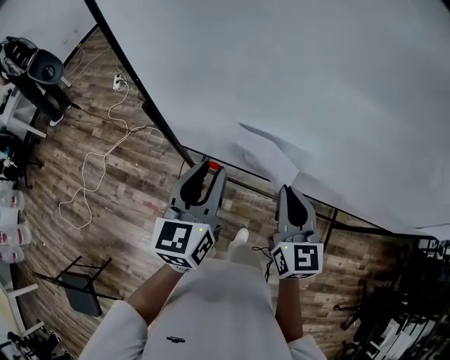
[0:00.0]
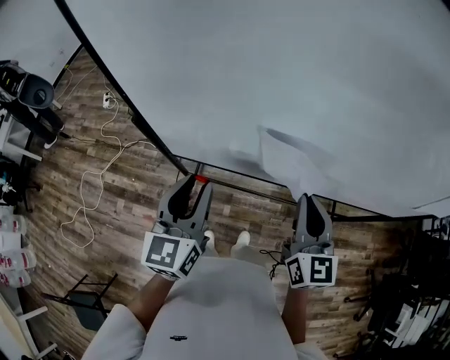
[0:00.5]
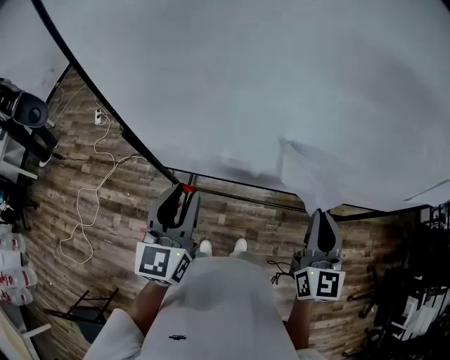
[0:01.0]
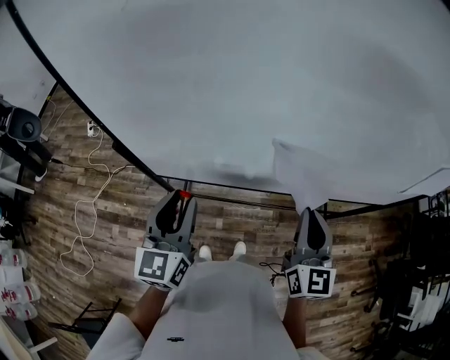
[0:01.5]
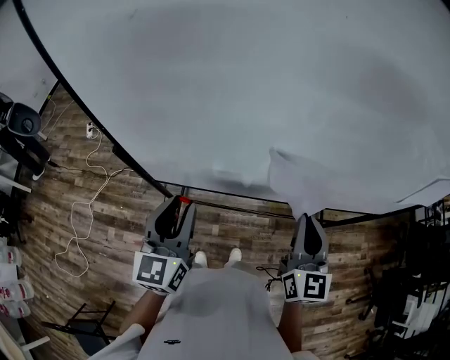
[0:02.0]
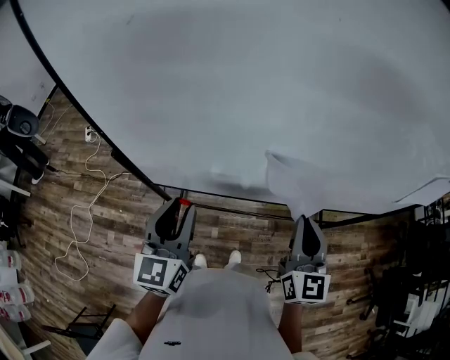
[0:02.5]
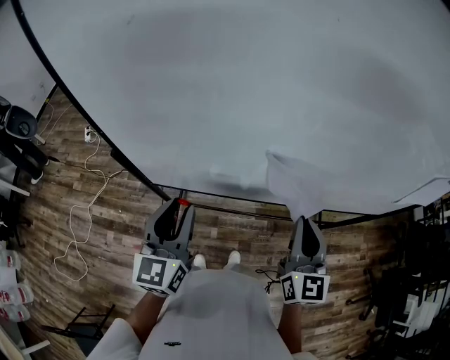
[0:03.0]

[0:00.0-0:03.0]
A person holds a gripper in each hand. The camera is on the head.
0:00.0 to 0:01.5: The right gripper shifts roughly 15 cm to the right and backward, and swivels some 20 degrees.
0:01.5 to 0:03.0: Both grippers stay about where they are.

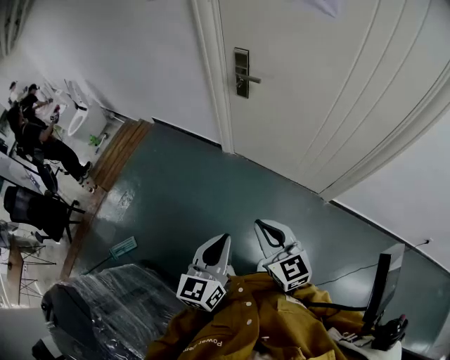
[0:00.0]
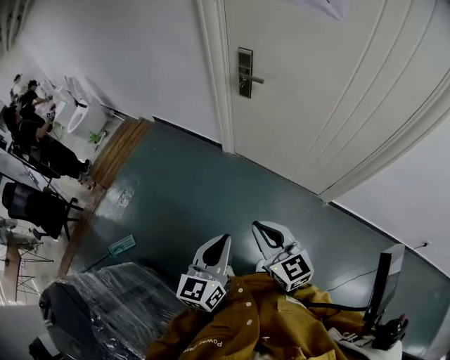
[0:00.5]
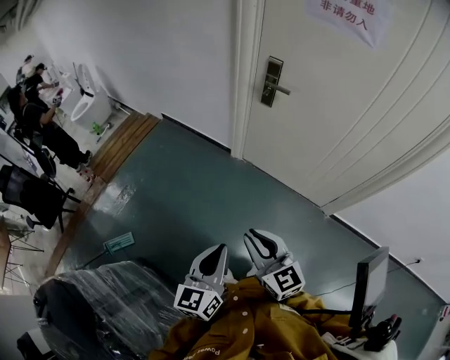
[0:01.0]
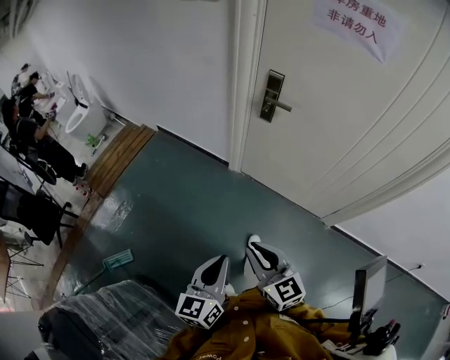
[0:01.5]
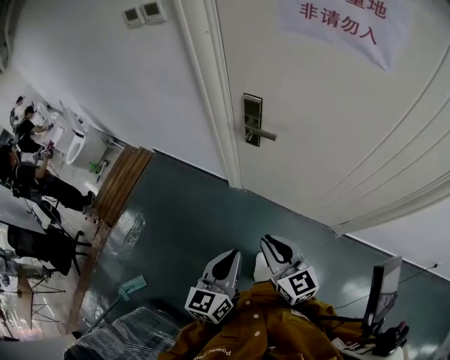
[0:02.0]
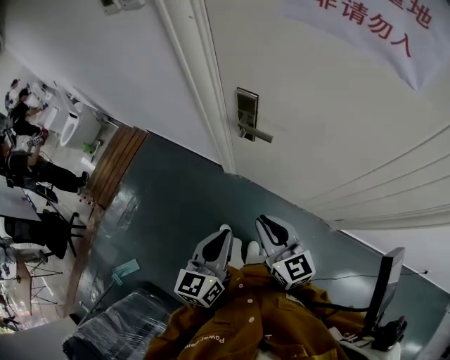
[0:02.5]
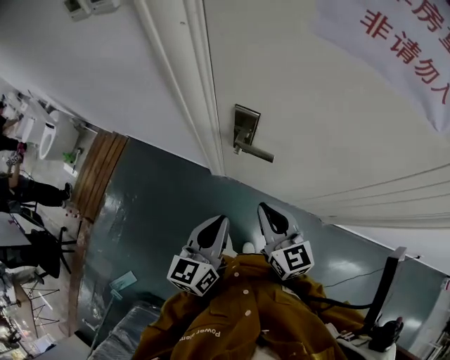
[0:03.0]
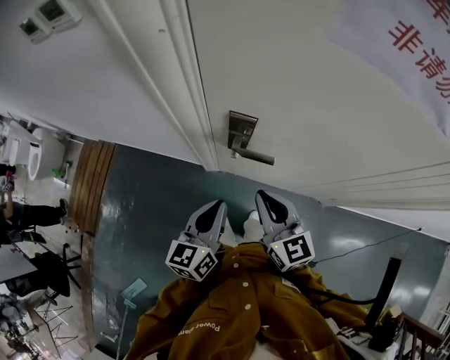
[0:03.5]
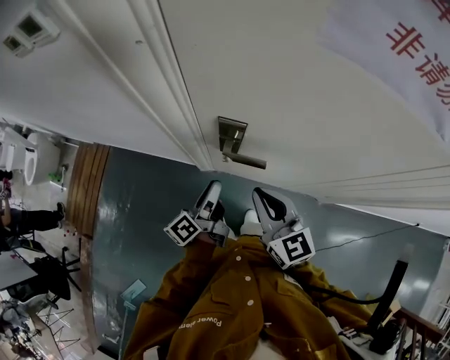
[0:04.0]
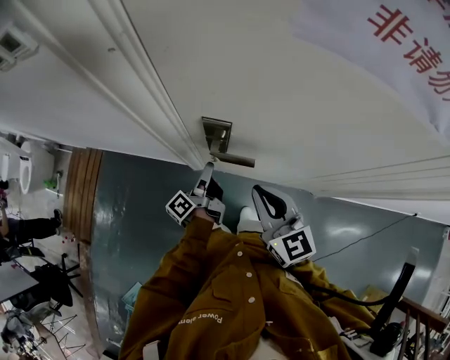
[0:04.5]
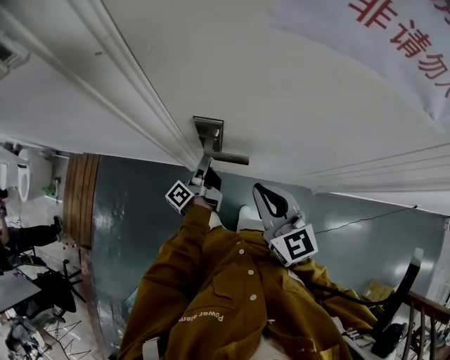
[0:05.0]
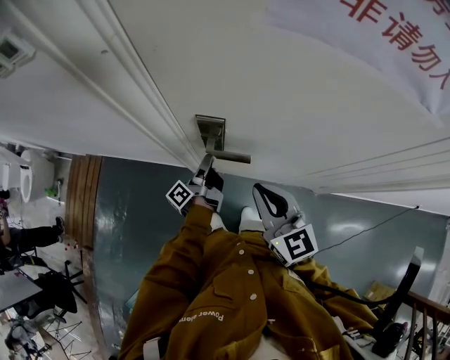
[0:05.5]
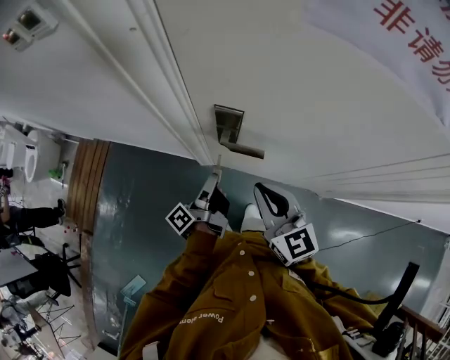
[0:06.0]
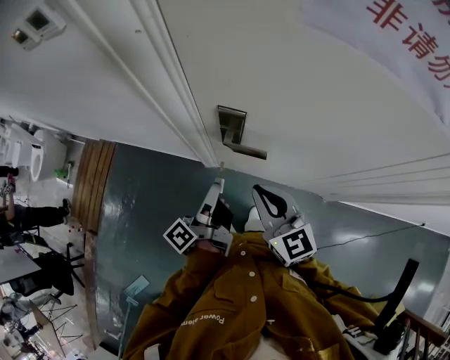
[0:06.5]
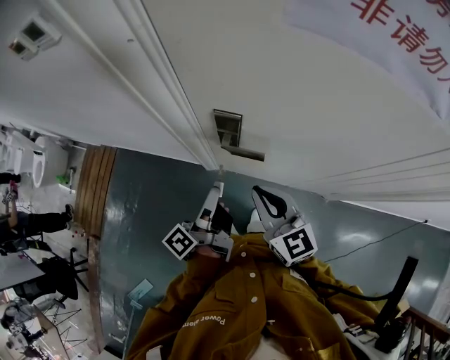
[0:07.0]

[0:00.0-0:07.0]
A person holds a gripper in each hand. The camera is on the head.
0:00.0 to 0:02.0: The two grippers go some 30 cm forward.
0:02.0 to 0:03.5: Both grippers move forward, about 30 cm.
0:03.5 to 0:05.0: The left gripper heads forward and downward, covering roughly 20 cm, twists about 60 degrees counterclockwise, seen from behind, and opens its fingers, while the right gripper heads to the right, covering roughly 5 cm.
0:05.0 to 0:07.0: The left gripper travels upward and backward by roughly 20 cm.

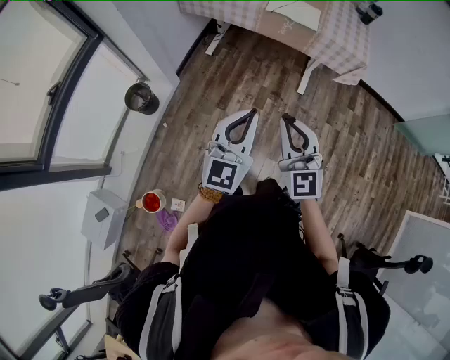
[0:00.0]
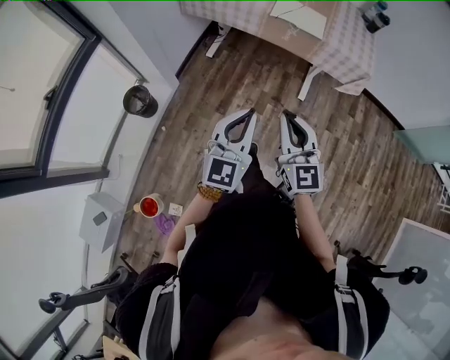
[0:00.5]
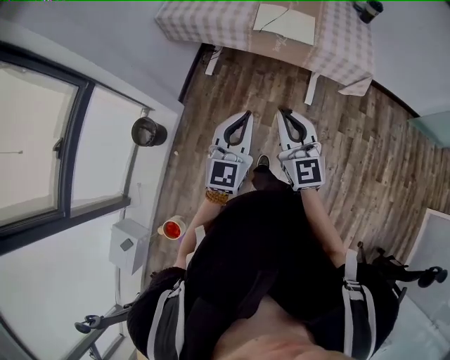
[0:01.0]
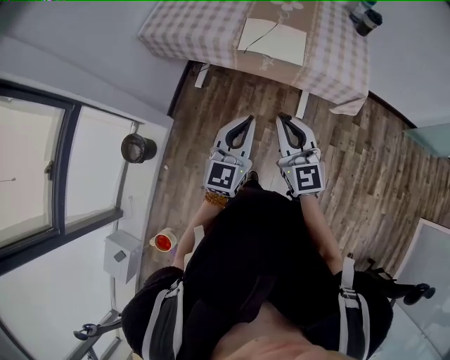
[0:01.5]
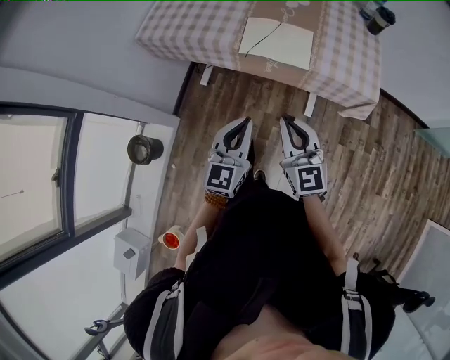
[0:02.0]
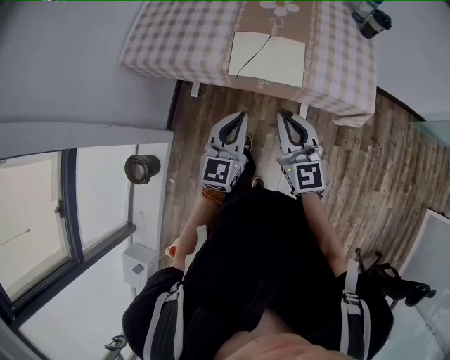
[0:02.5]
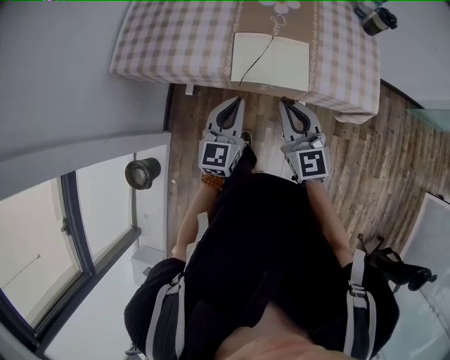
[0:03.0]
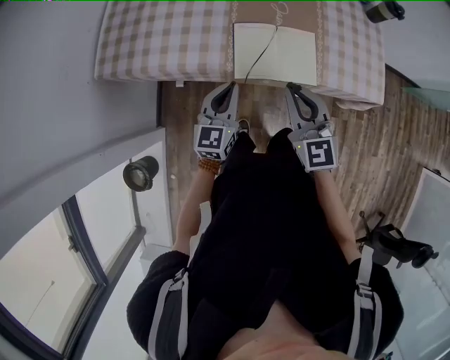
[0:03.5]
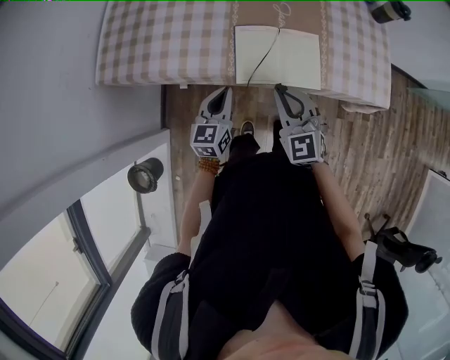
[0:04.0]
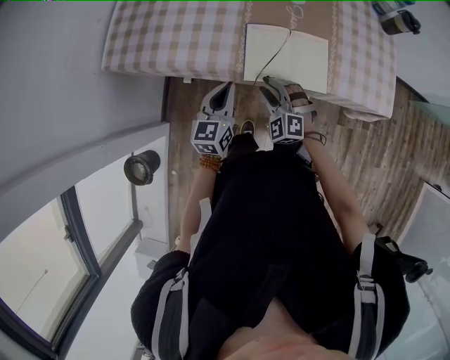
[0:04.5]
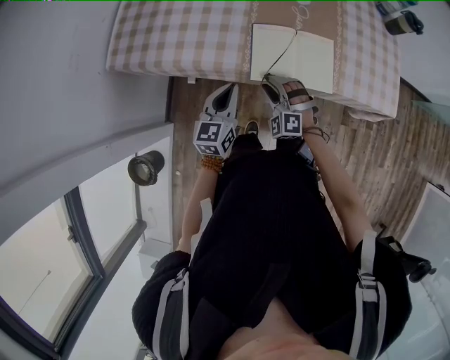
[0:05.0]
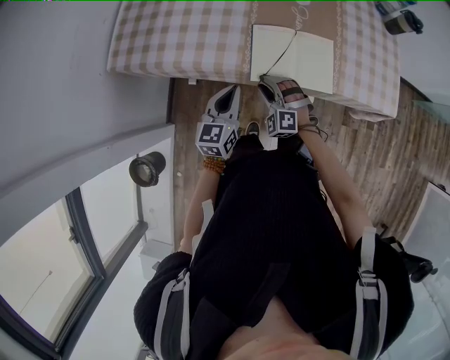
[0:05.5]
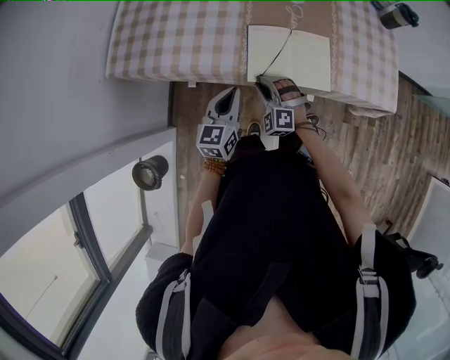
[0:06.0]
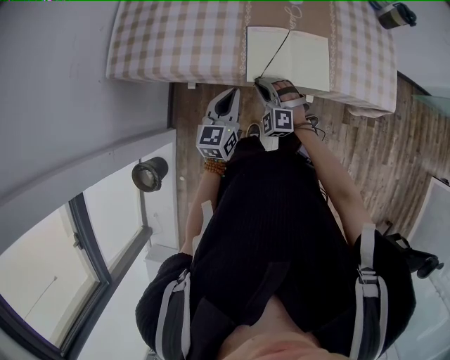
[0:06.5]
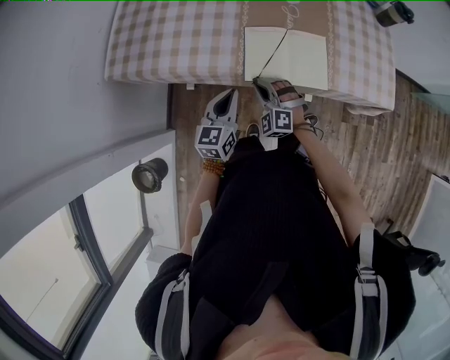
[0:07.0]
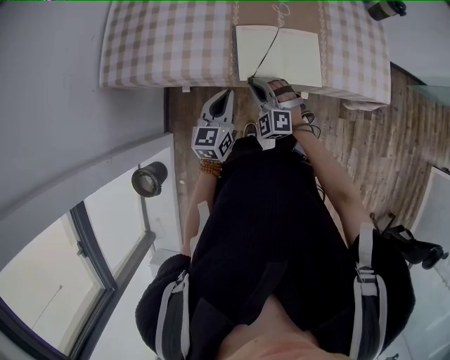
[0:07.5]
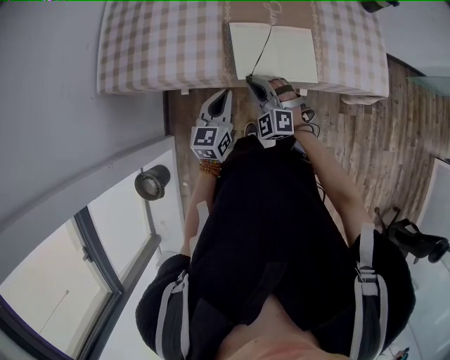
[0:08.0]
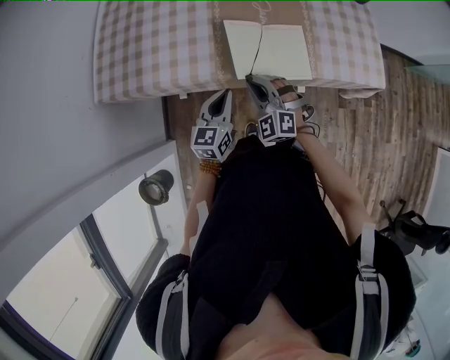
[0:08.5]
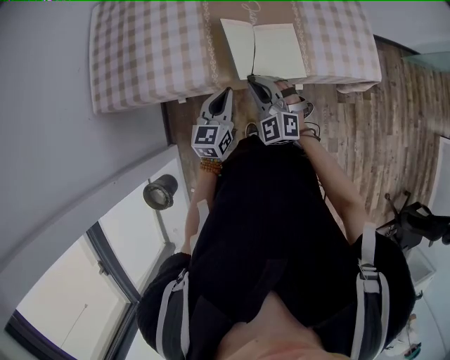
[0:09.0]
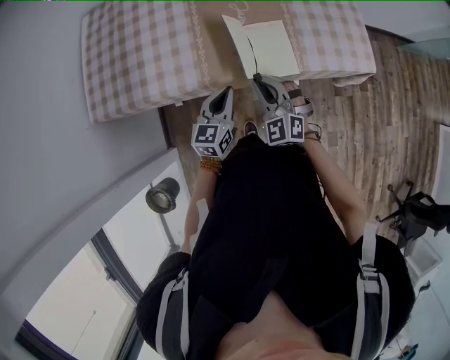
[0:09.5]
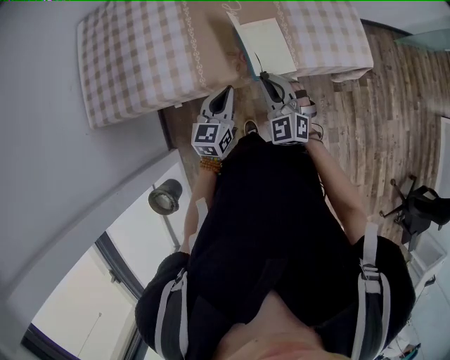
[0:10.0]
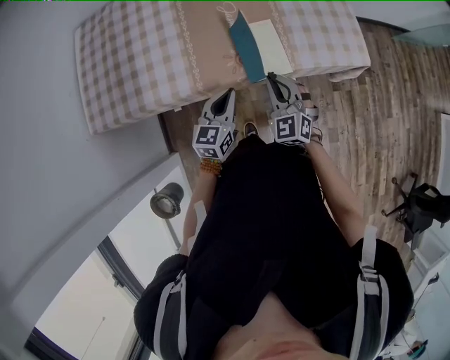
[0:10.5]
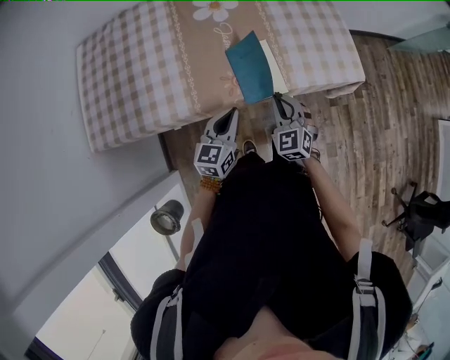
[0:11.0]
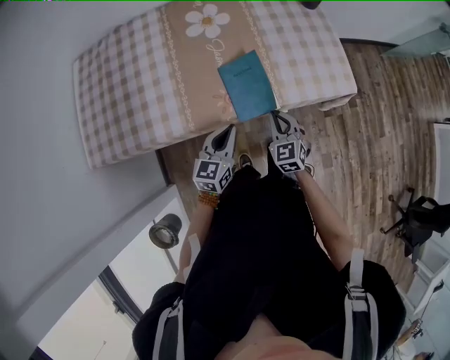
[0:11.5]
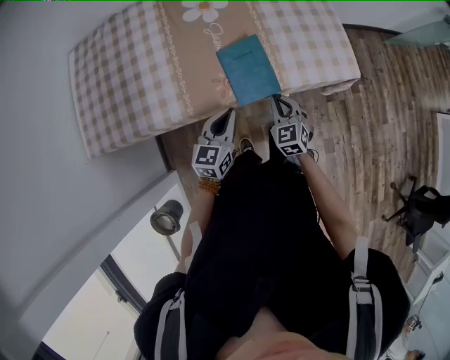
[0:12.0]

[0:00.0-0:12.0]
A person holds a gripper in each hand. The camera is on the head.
0:00.0 to 0:02.0: The pair of grippers is taken forward, roughly 40 cm.
0:02.0 to 0:04.0: The left gripper goes about 35 cm forward and downward. The right gripper heads forward, covering roughly 30 cm, and changes its angle by some 20 degrees.
0:04.0 to 0:06.0: The right gripper goes about 20 cm downward and to the left, and rotates approximately 40 degrees.
0:06.0 to 0:08.0: The right gripper moves upward, approximately 5 cm.
0:08.0 to 0:10.0: The left gripper travels to the right by about 10 cm, while the right gripper goes about 15 cm to the right and upward, and swivels roughly 20 degrees.
0:10.0 to 0:12.0: The right gripper travels to the right and downward by some 15 cm, and rotates about 30 degrees; the left gripper is displaced to the right by roughly 5 cm.

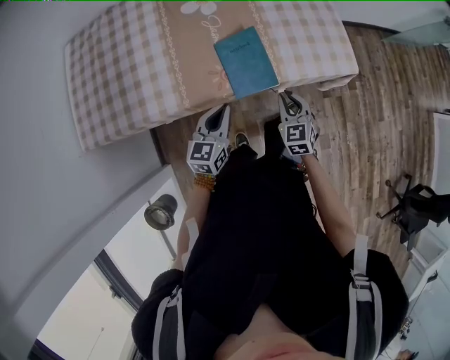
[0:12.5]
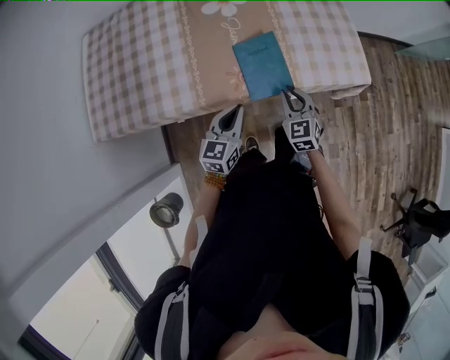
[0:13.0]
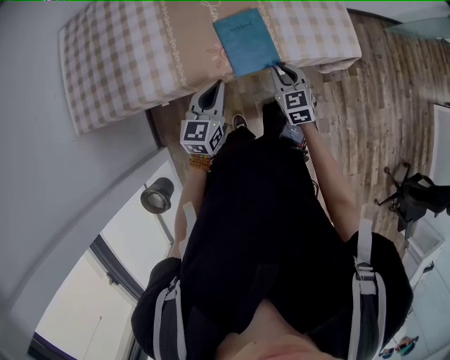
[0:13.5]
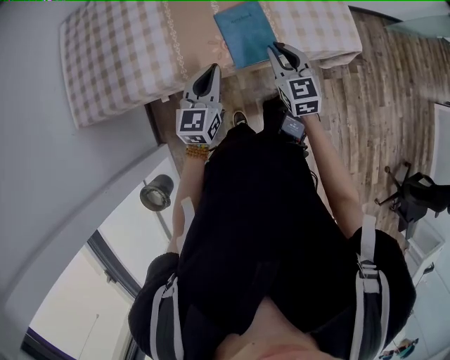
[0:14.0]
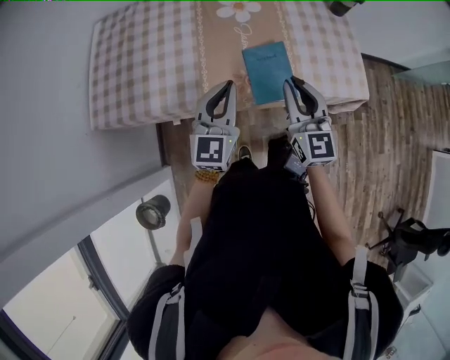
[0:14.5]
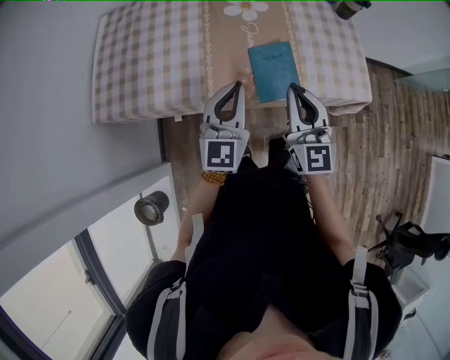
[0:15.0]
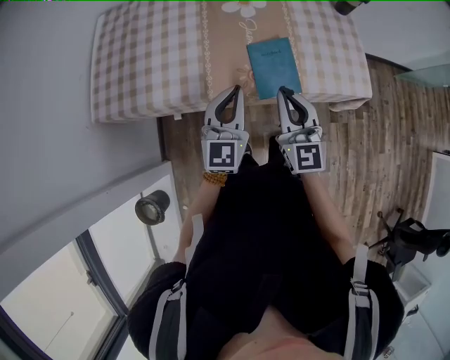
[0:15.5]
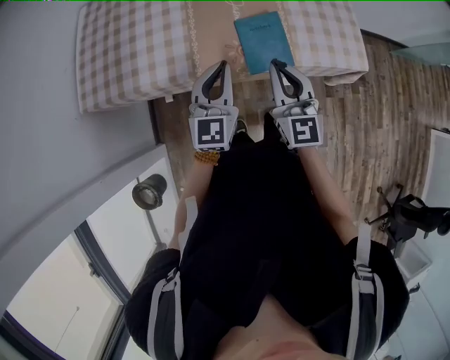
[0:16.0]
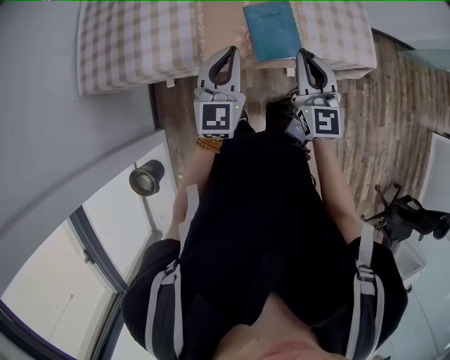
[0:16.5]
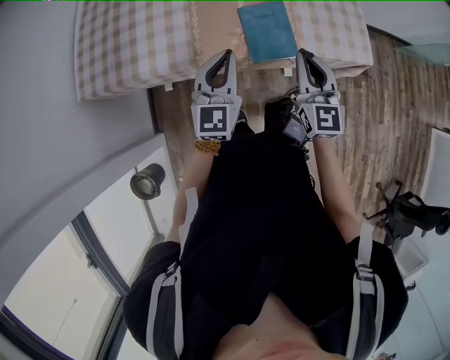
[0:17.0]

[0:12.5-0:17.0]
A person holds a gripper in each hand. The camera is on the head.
0:12.5 to 0:14.5: The grippers both shift upward by about 20 cm. The left gripper rotates roughly 30 degrees, while the right gripper turns by roughly 30 degrees.
0:14.5 to 0:17.0: The right gripper moves about 5 cm.
